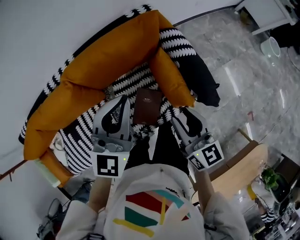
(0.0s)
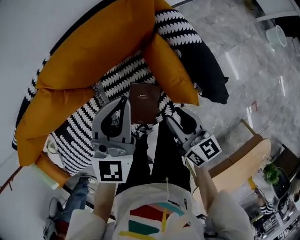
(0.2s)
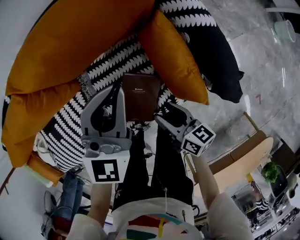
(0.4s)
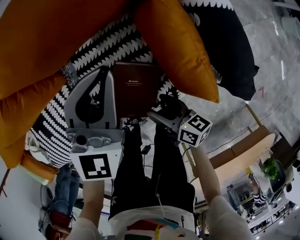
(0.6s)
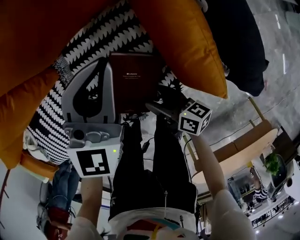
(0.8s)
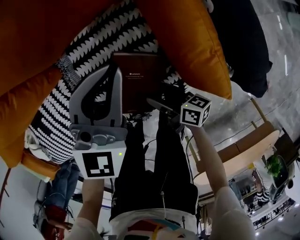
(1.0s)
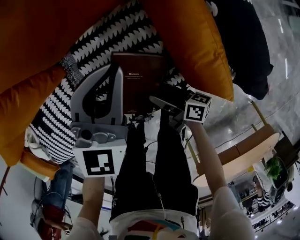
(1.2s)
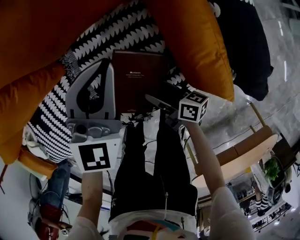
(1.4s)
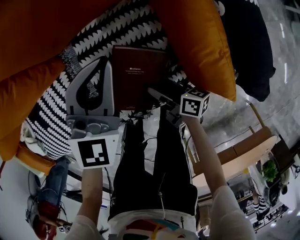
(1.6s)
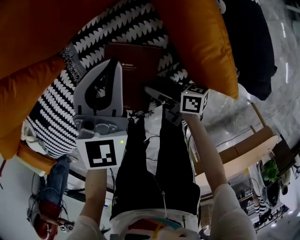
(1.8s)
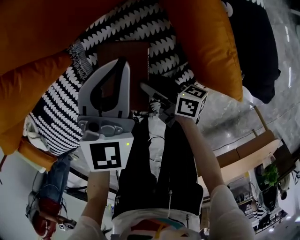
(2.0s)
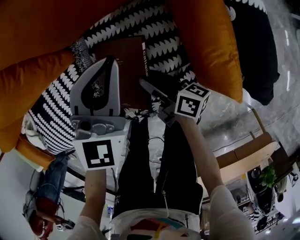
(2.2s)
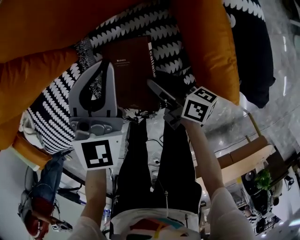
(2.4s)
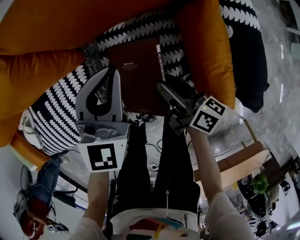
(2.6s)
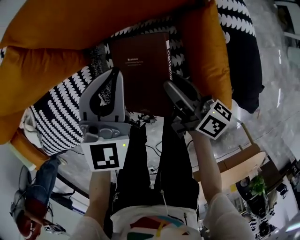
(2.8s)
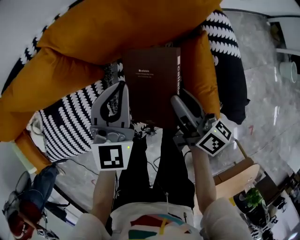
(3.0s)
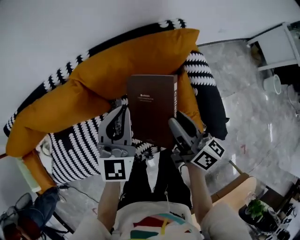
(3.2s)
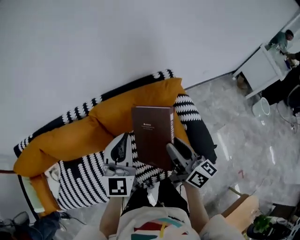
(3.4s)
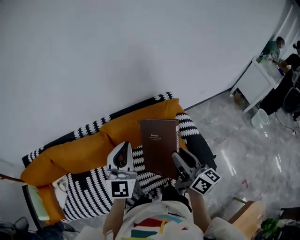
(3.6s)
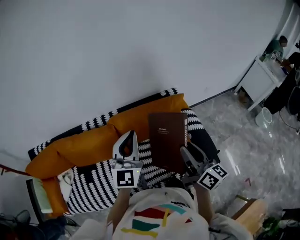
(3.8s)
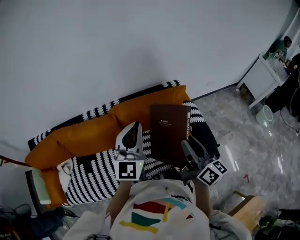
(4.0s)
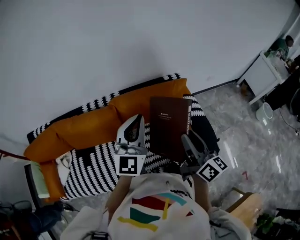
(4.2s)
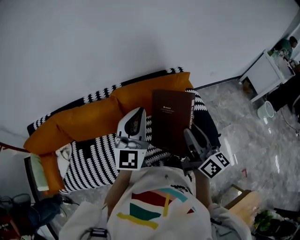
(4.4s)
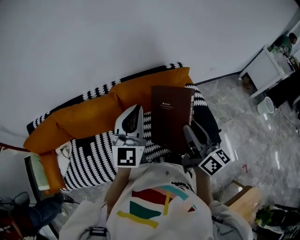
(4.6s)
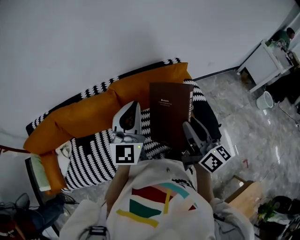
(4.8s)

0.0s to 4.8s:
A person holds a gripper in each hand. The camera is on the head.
0.0s to 1.6s: The grippers both shift downward by some 40 cm. The right gripper rolls clockwise, seen from behind, by about 50 degrees.
1.6s to 3.2s: The right gripper travels upward by about 40 cm, and turns by some 40 degrees. The left gripper heads upward, covering some 20 cm, and changes its angle by approximately 20 degrees.
3.2s to 4.8s: The right gripper heads upward and backward, covering some 20 cm, while the left gripper shifts approximately 20 cm upward and to the left.

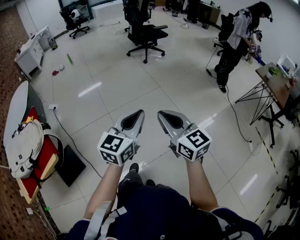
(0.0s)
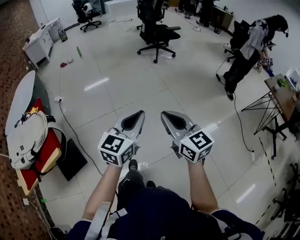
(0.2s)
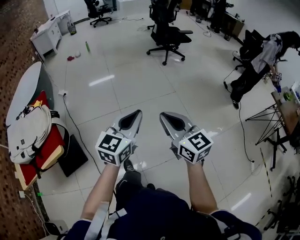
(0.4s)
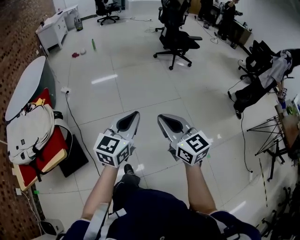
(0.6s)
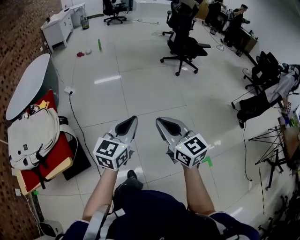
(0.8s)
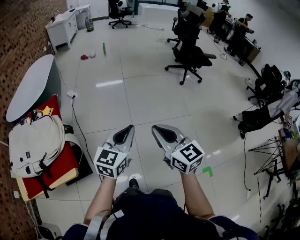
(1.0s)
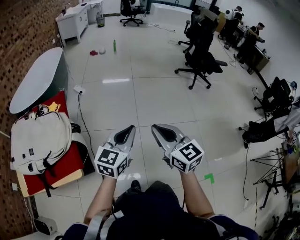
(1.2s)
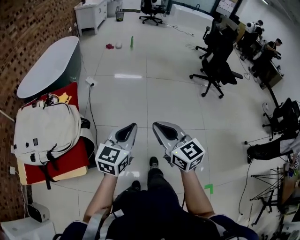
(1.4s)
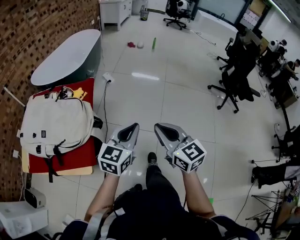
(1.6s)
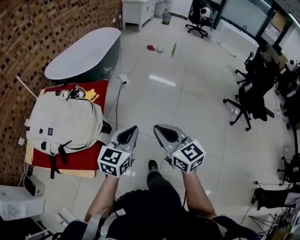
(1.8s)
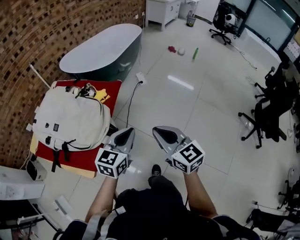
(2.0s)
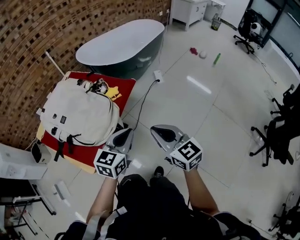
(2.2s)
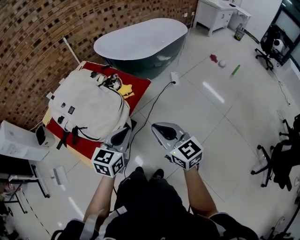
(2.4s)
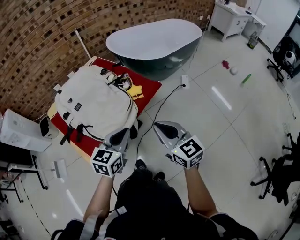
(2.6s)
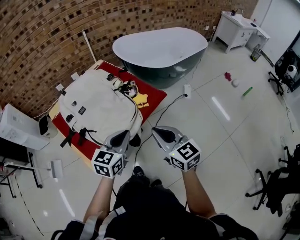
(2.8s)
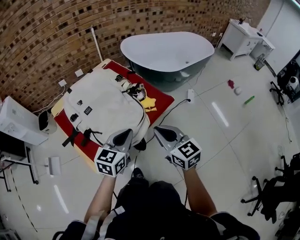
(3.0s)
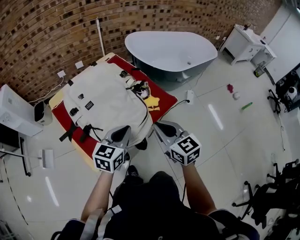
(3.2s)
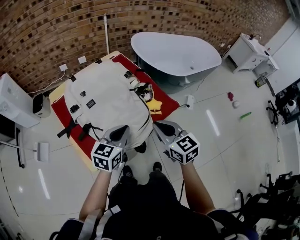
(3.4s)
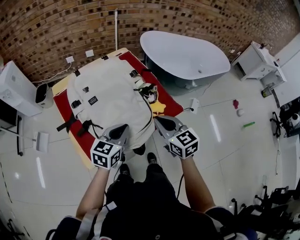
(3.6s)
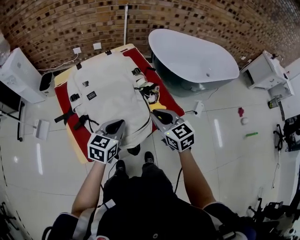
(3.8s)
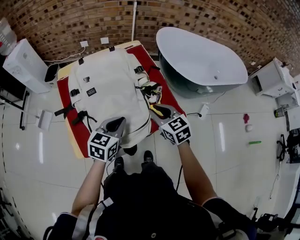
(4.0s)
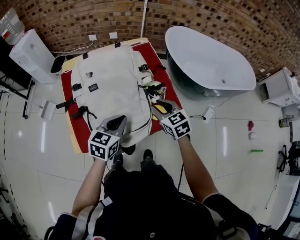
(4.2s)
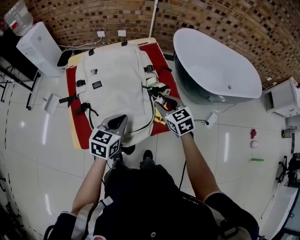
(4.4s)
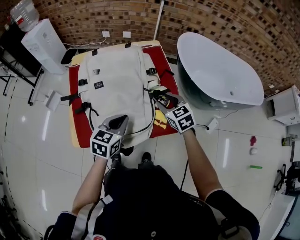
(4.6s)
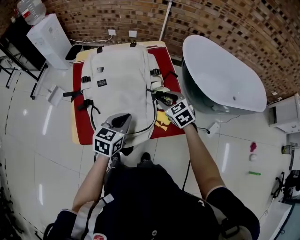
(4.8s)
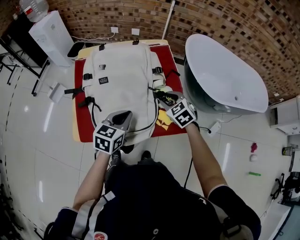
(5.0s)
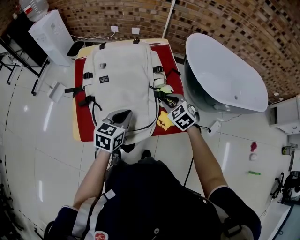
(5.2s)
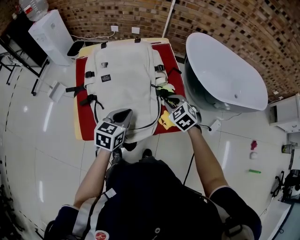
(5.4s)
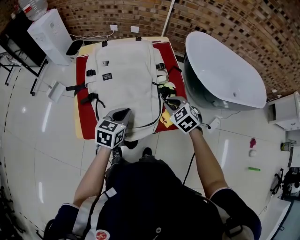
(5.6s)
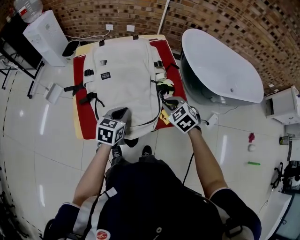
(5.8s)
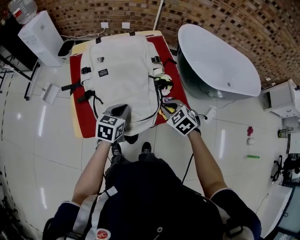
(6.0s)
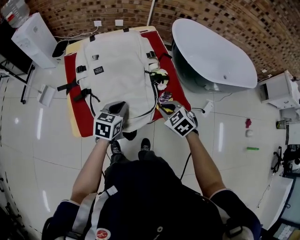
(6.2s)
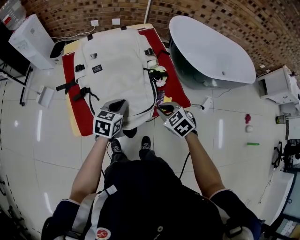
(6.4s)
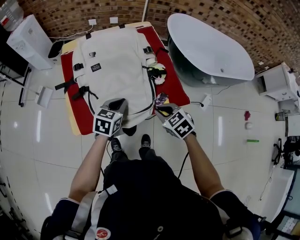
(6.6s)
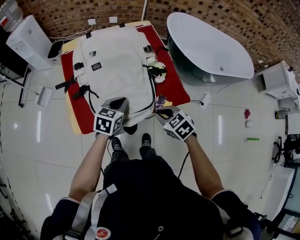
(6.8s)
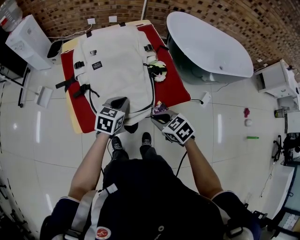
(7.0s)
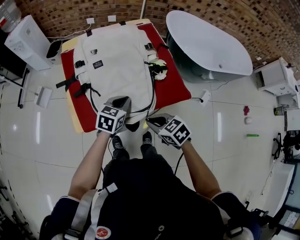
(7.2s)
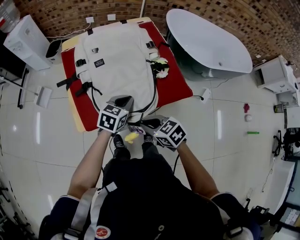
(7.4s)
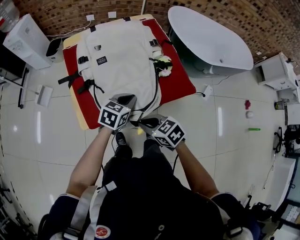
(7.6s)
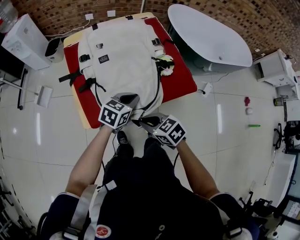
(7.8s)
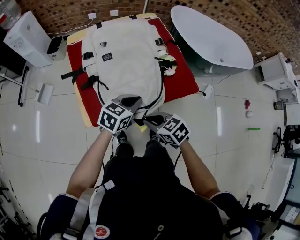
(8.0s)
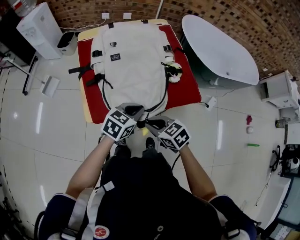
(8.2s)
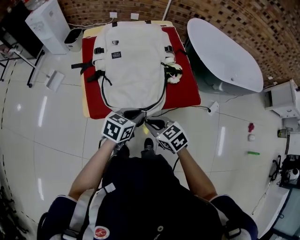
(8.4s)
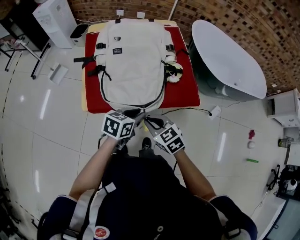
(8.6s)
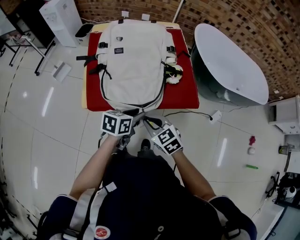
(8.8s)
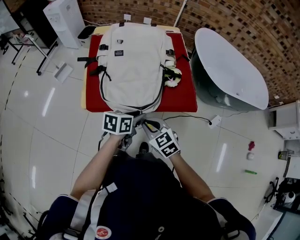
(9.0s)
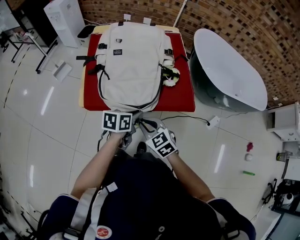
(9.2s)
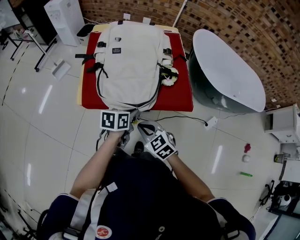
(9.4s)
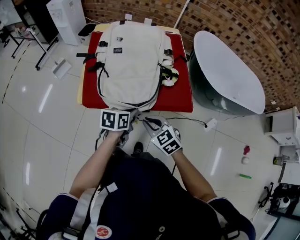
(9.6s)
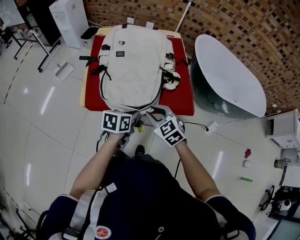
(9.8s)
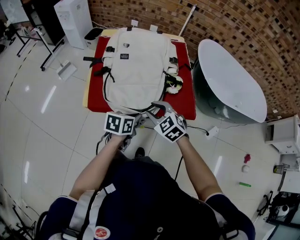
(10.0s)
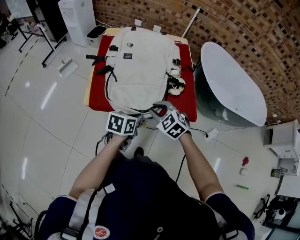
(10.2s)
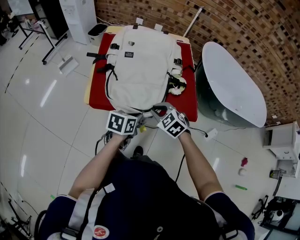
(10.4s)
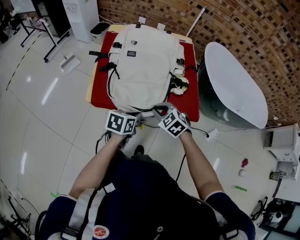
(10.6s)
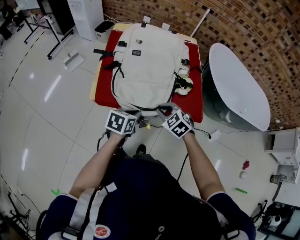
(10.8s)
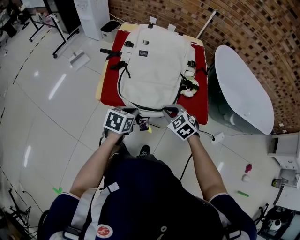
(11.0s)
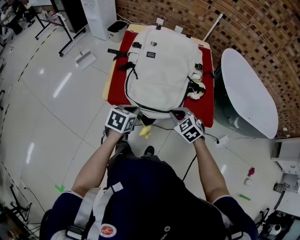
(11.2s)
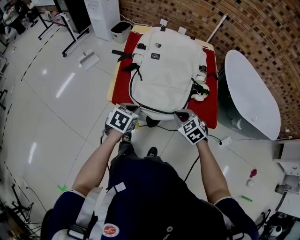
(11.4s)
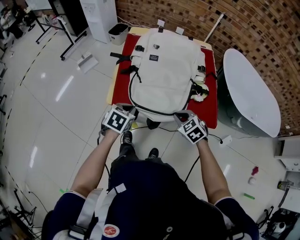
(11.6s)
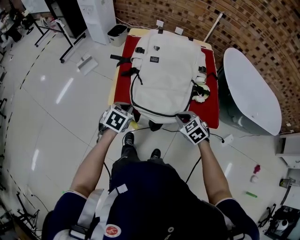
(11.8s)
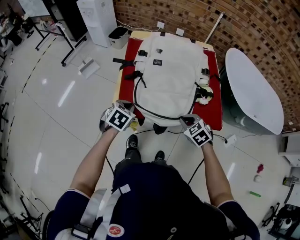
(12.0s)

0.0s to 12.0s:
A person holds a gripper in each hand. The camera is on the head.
0.0s to 1.6s: Both grippers are carried some 50 cm. The left gripper changes its angle by roughly 40 degrees. Meanwhile the right gripper turns by roughly 40 degrees.
1.6s to 3.0s: The right gripper changes place by roughly 35 cm, and rotates some 50 degrees, while the left gripper changes place by about 30 cm, and turns by some 50 degrees.
3.0s to 4.4s: The right gripper moves some 25 cm, rotates roughly 30 degrees, and opens its fingers. Meanwhile the left gripper moves roughly 10 cm, and changes its angle by roughly 30 degrees.
4.4s to 6.0s: The right gripper shifts some 5 cm backward, swivels about 30 degrees, and closes its fingers.
6.0s to 7.6s: The right gripper heads to the left and backward, covering some 20 cm, and turns by about 30 degrees.
7.6s to 9.0s: The left gripper travels backward by about 10 cm, turns by roughly 30 degrees, and opens up. Meanwhile the right gripper rotates about 20 degrees.
9.0s to 10.4s: The left gripper closes its fingers; the right gripper heads forward, covering roughly 10 cm, swivels roughly 20 degrees, and opens, then closes once more.
10.4s to 12.0s: The left gripper shifts approximately 20 cm to the left and forward, and rotates some 40 degrees.

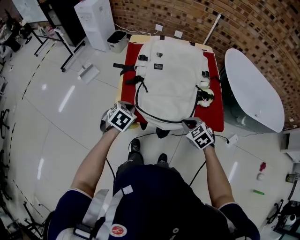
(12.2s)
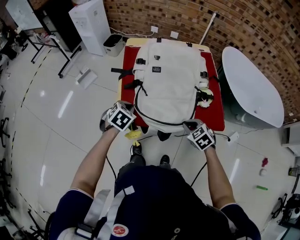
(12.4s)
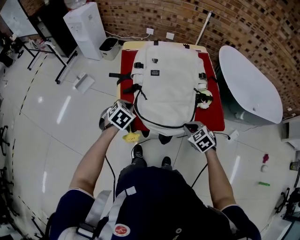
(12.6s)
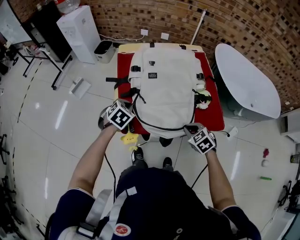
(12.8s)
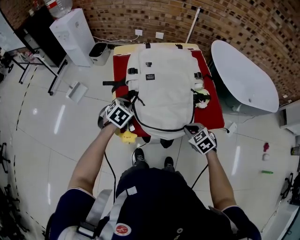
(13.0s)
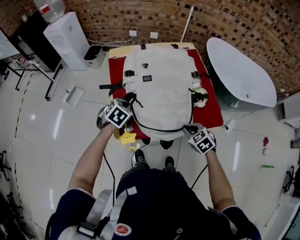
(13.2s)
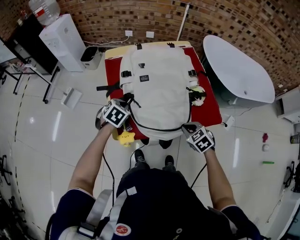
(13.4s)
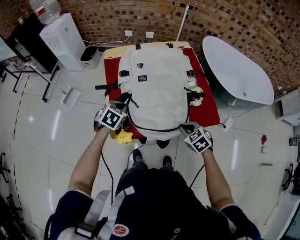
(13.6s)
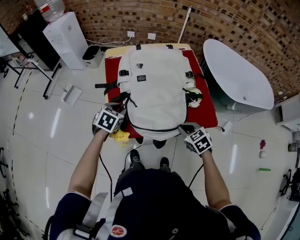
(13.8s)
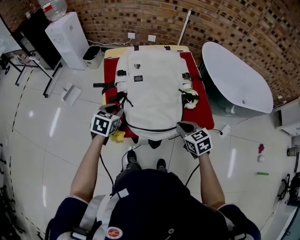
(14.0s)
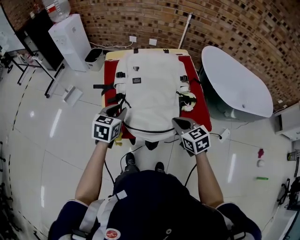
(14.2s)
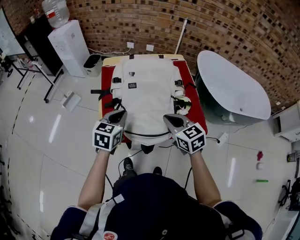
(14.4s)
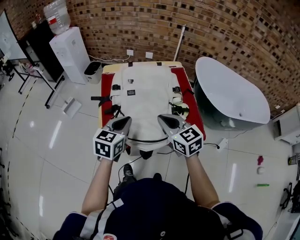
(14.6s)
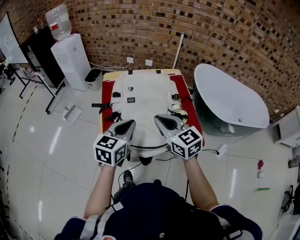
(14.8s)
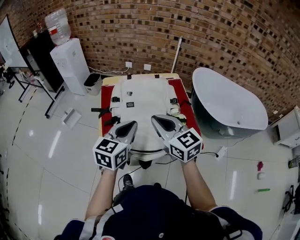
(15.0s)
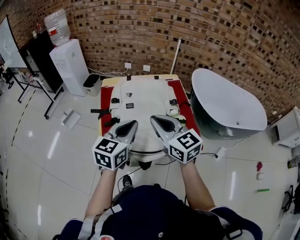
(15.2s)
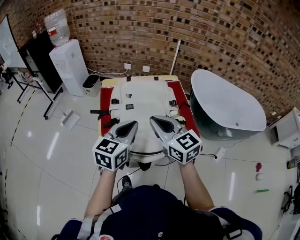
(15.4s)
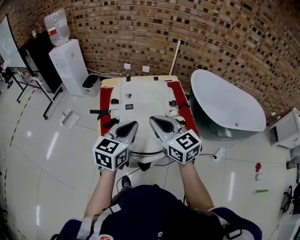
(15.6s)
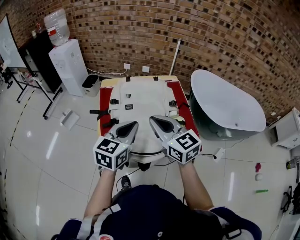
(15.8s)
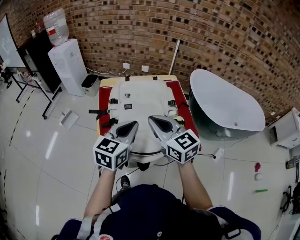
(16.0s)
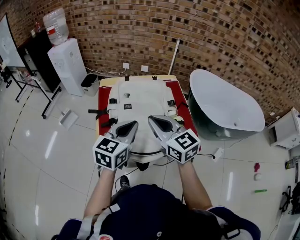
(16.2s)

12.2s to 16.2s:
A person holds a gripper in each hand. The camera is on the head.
12.2s to 13.6s: The left gripper shifts roughly 10 cm forward.
13.6s to 14.8s: The right gripper moves upward, approximately 25 cm, and angles its fingers upward, by approximately 40 degrees. The left gripper moves upward and to the right, approximately 25 cm, tips its fingers upward by approximately 40 degrees, and opens, then closes again.
14.8s to 16.2s: The grippers stay close to where they were, moving slightly.
